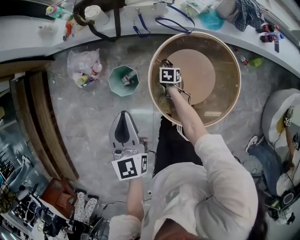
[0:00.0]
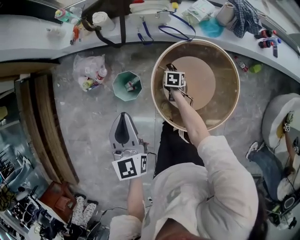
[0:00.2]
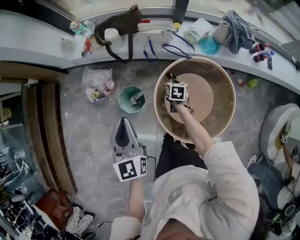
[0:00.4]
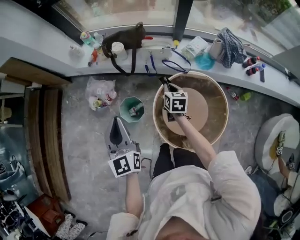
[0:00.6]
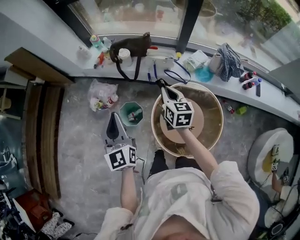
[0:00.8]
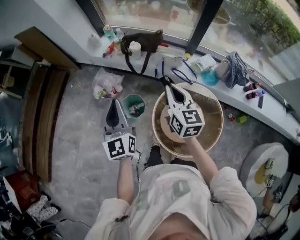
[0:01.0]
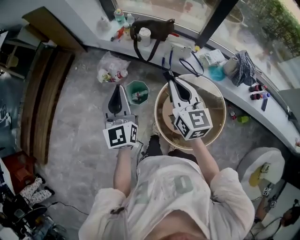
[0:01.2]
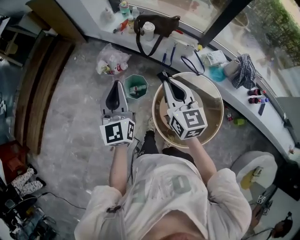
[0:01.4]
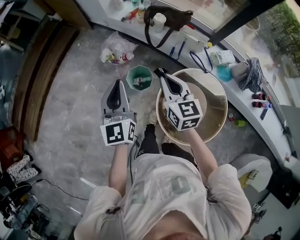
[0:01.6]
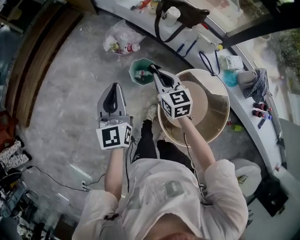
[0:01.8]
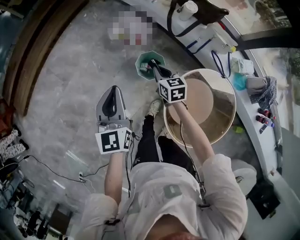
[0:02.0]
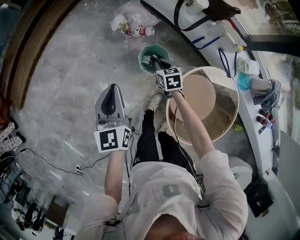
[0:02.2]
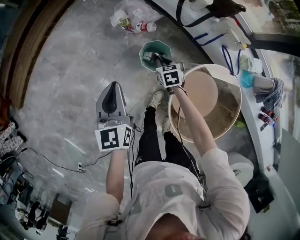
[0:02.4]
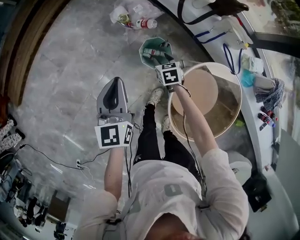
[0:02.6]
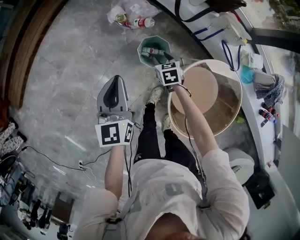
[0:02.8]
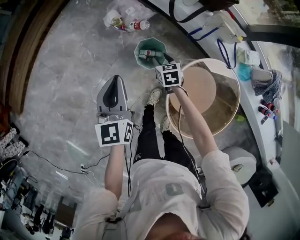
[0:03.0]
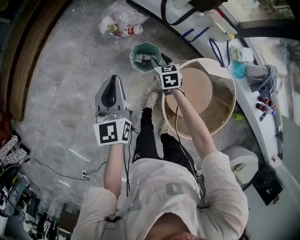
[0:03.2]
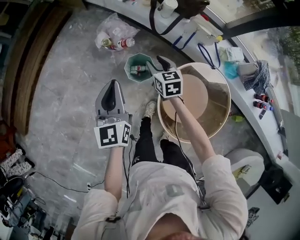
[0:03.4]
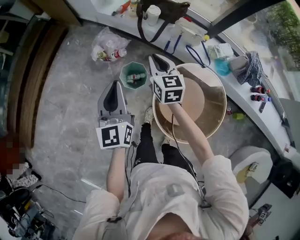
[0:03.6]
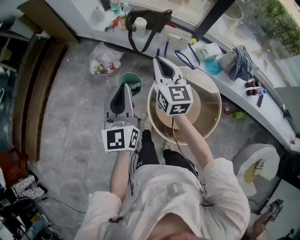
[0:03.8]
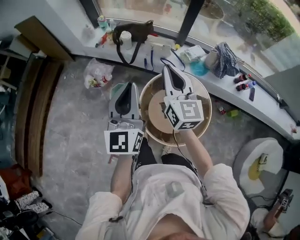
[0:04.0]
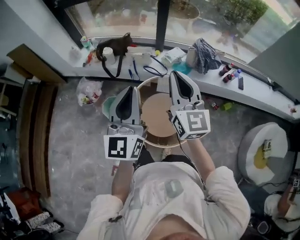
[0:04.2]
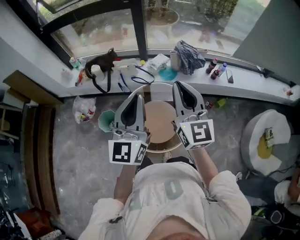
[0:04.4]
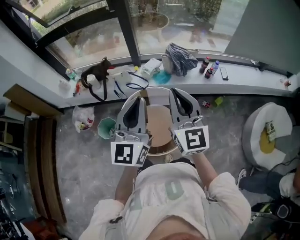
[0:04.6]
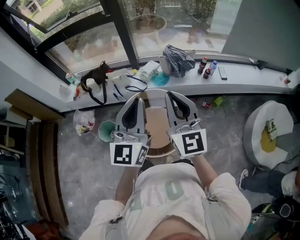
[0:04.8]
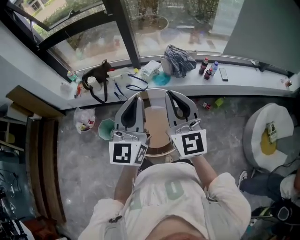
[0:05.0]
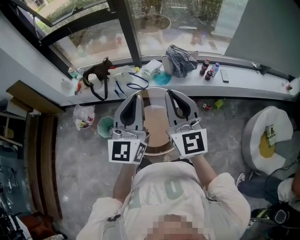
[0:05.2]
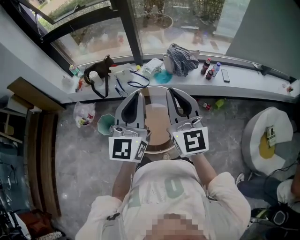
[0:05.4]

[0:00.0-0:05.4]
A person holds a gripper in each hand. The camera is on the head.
0:00.0 to 0:01.4: The right gripper moves upward, about 50 cm, and tips its fingers upward by roughly 60 degrees, while the left gripper goes some 15 cm upward, and rotates about 30 degrees.
0:01.4 to 0:02.8: The right gripper is displaced downward by some 40 cm, tilts its fingers approximately 50 degrees downward, and opens its fingers, while the left gripper travels downward and to the left by about 25 cm, and changes its angle by some 20 degrees.
0:02.8 to 0:04.0: The left gripper moves some 40 cm, and swivels roughly 40 degrees; the right gripper travels upward by some 50 cm, angles its fingers upward, by roughly 60 degrees, and closes its fingers.
0:04.0 to 0:05.4: The left gripper goes some 30 cm to the right, and swivels about 20 degrees. The right gripper shifts about 35 cm to the right, backward and upward, and swivels some 20 degrees.

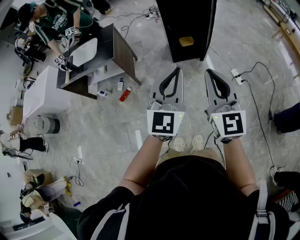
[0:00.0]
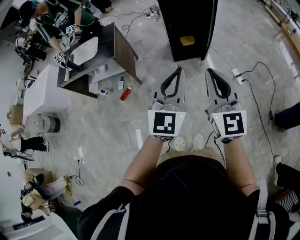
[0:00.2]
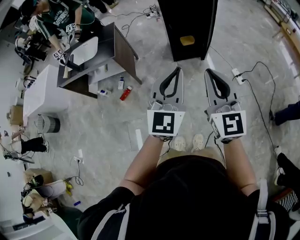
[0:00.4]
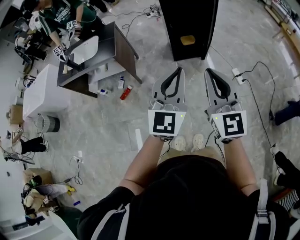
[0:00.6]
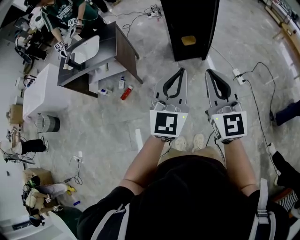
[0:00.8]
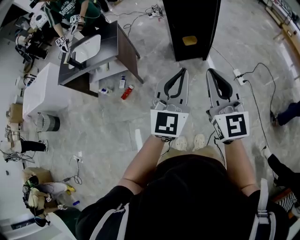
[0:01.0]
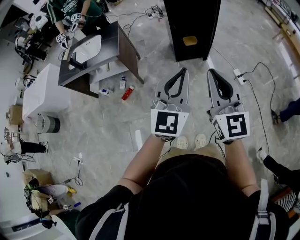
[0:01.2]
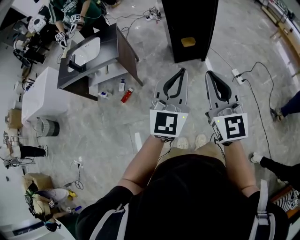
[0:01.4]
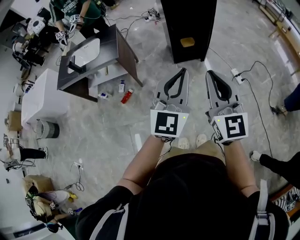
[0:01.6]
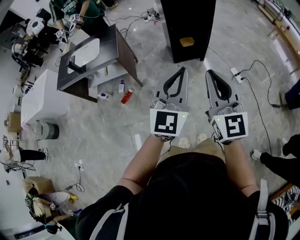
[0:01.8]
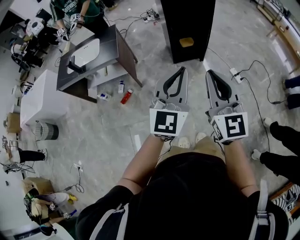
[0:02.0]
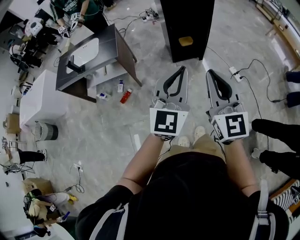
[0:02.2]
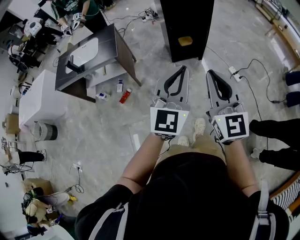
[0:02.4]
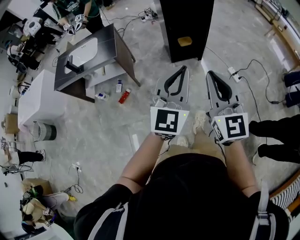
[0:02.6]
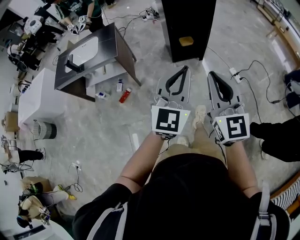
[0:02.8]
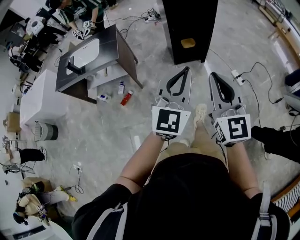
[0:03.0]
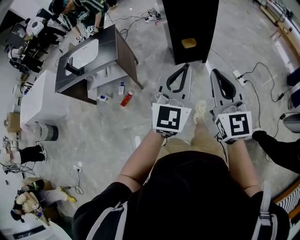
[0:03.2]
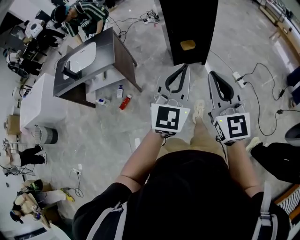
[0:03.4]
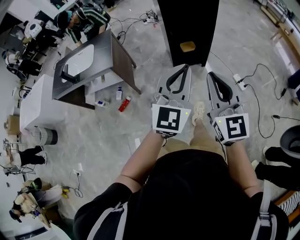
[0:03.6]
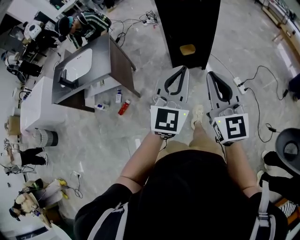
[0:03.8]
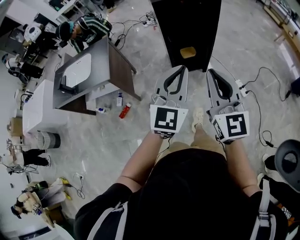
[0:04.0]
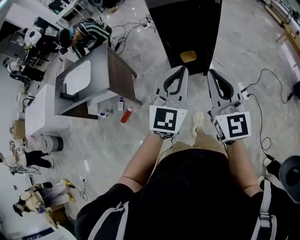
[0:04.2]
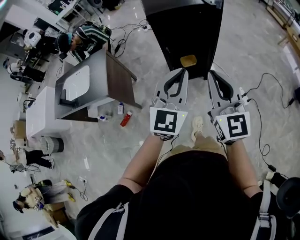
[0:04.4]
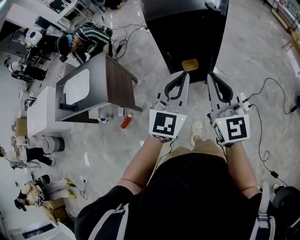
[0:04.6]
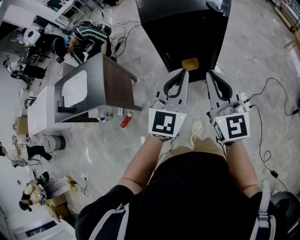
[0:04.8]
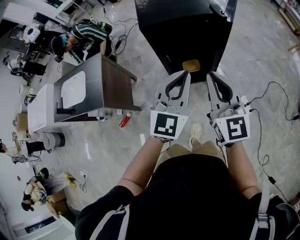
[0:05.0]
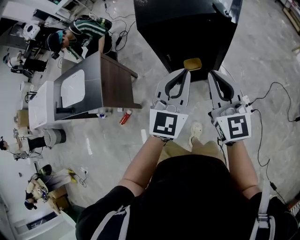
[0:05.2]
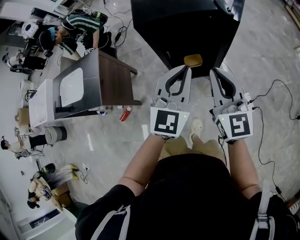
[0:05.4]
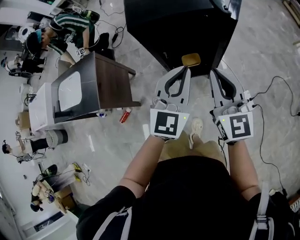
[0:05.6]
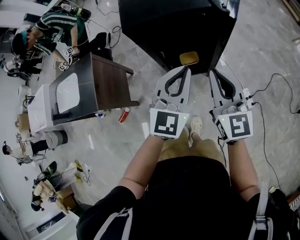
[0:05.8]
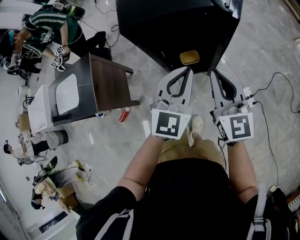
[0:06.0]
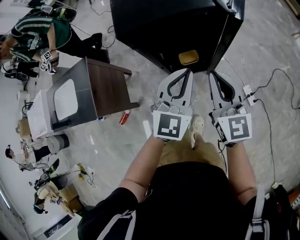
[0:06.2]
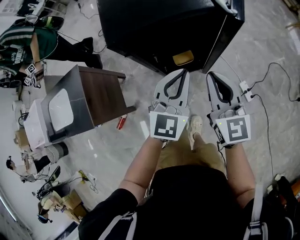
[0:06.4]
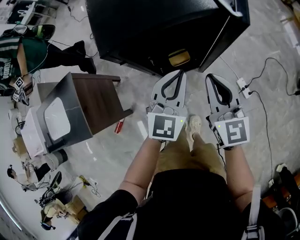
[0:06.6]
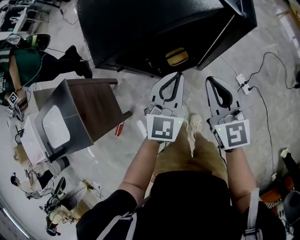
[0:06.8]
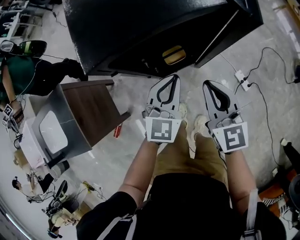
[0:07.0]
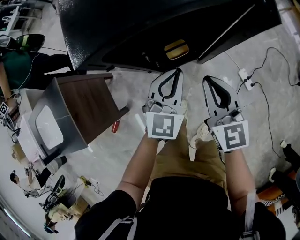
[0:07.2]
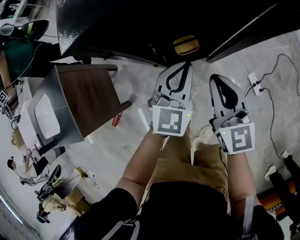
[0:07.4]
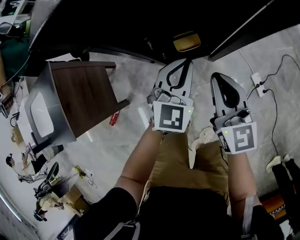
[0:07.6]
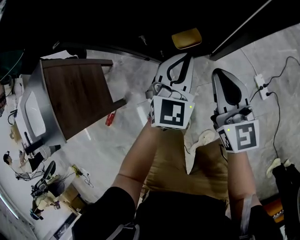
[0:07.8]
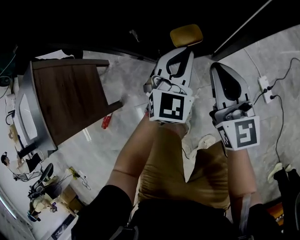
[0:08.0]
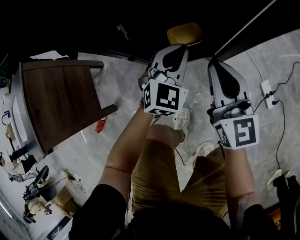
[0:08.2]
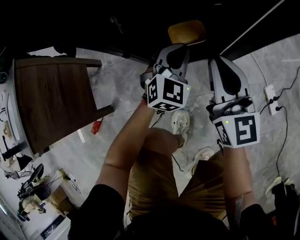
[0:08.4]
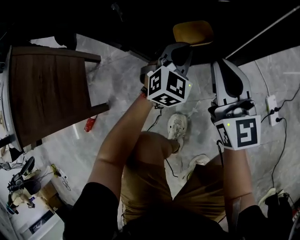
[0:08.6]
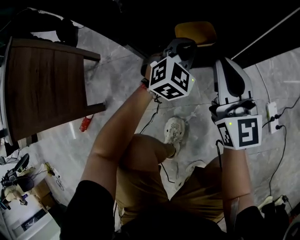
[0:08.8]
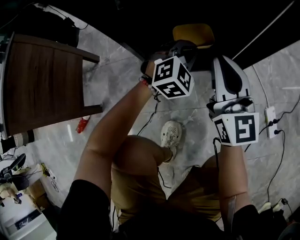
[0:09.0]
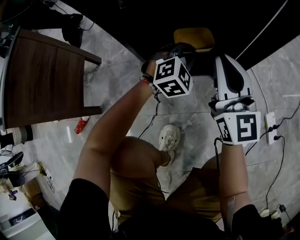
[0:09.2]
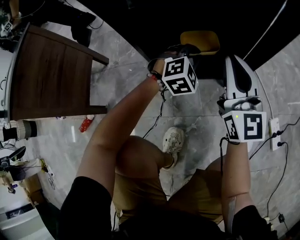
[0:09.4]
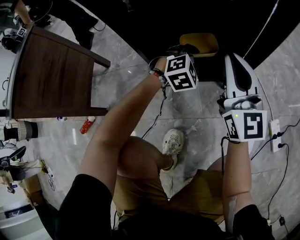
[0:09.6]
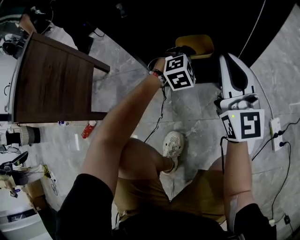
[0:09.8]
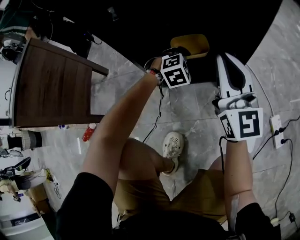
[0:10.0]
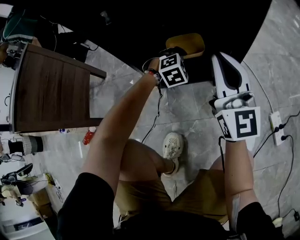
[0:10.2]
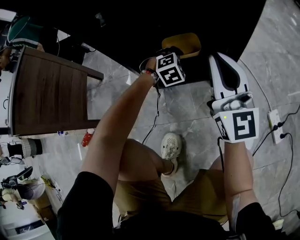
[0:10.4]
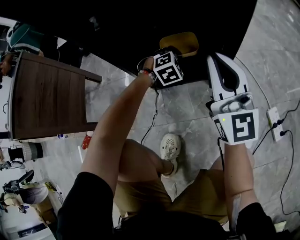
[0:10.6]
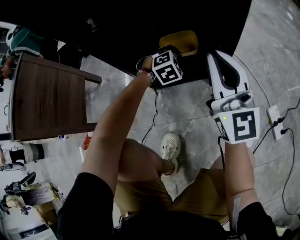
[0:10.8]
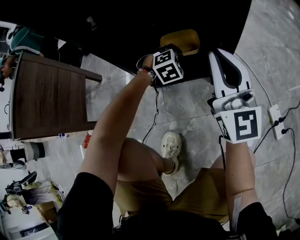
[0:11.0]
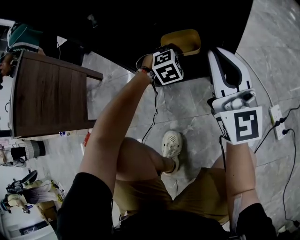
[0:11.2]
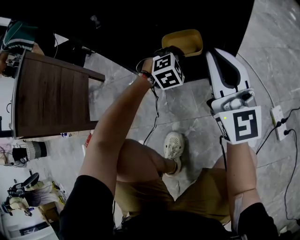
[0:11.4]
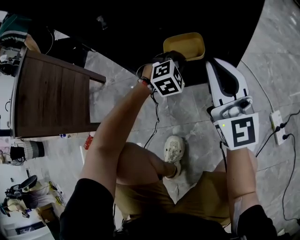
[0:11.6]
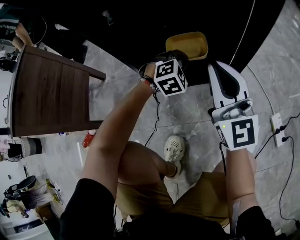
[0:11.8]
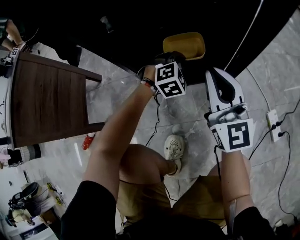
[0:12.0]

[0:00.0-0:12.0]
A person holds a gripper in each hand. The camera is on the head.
0:00.0 to 0:01.6: Both grippers move to the left, roughly 5 cm.
0:01.6 to 0:03.0: There are only small adjustments of the grippers.
0:03.0 to 0:04.4: The two grippers go approximately 35 cm forward.
0:04.4 to 0:06.0: The grippers both shift forward by roughly 30 cm.
0:06.0 to 0:07.6: The two grippers go about 30 cm downward.
0:07.6 to 0:09.0: Both grippers travel together downward, some 40 cm. The left gripper turns by some 30 degrees.
0:09.0 to 0:10.4: The left gripper shifts approximately 10 cm downward. Meanwhile the right gripper shifts approximately 5 cm to the right.
0:10.4 to 0:12.0: The grippers move only a little.

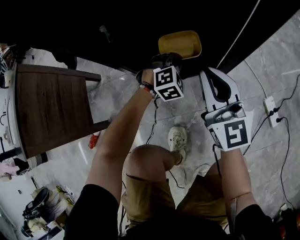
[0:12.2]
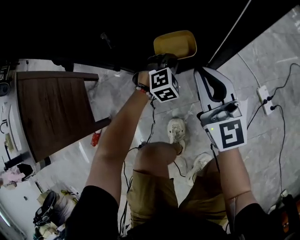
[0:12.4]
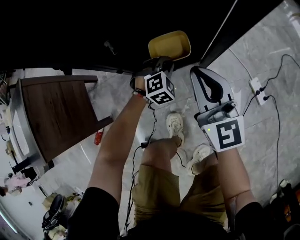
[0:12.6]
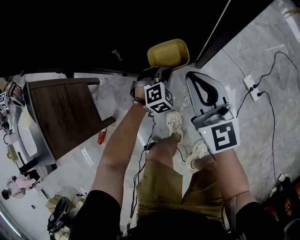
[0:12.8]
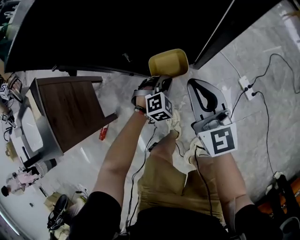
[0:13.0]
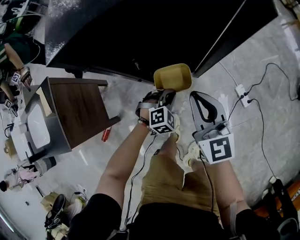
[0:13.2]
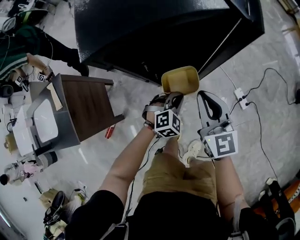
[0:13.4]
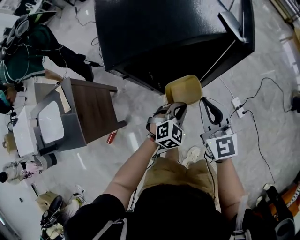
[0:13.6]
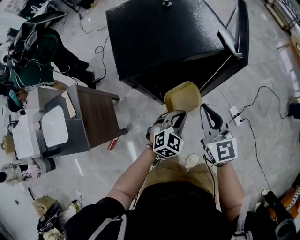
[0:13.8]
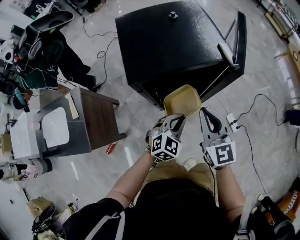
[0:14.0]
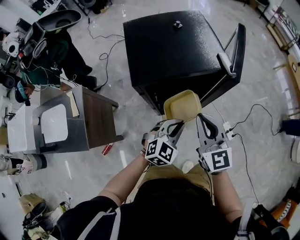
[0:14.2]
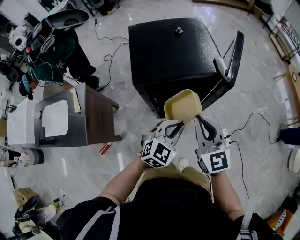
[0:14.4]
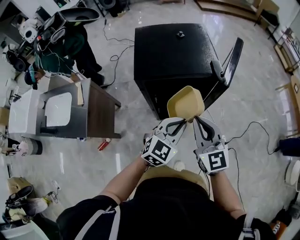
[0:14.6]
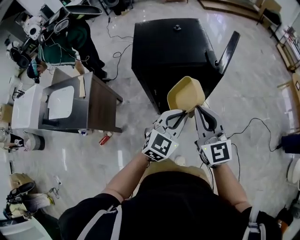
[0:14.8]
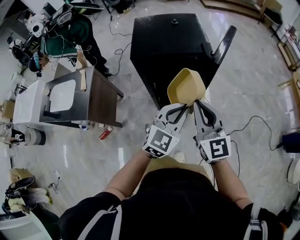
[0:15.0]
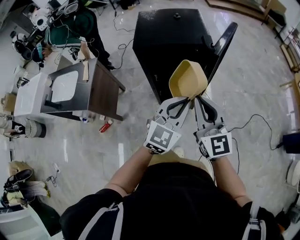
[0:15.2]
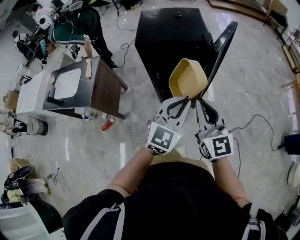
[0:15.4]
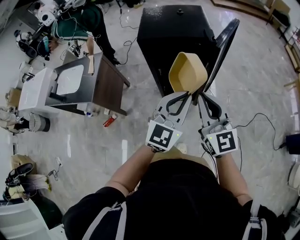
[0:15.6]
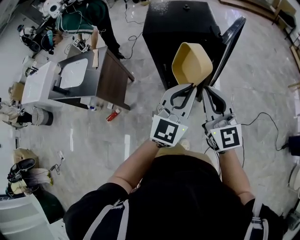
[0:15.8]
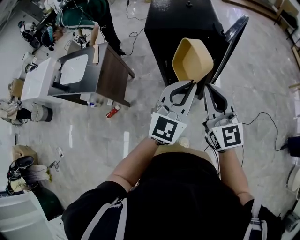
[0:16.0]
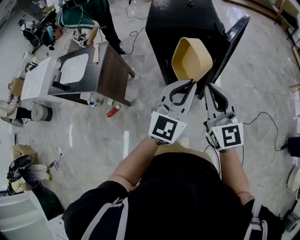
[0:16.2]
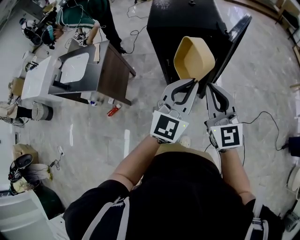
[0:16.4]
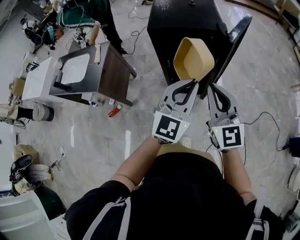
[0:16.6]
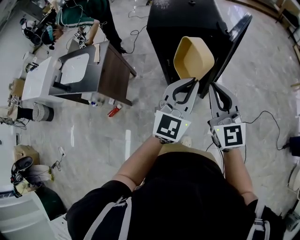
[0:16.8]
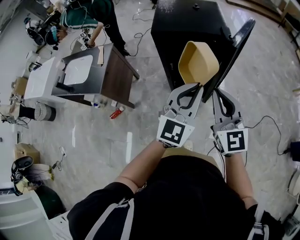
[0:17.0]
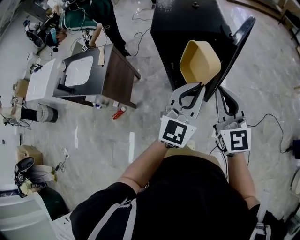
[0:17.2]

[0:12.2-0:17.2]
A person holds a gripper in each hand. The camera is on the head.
0:12.2 to 0:13.8: Both grippers travel together upward, about 50 cm. The left gripper swivels about 30 degrees.
0:13.8 to 0:15.6: The right gripper is displaced backward, upward and to the right by roughly 30 cm, and swivels some 20 degrees; the left gripper moves upward, backward and to the right, roughly 35 cm, and tips its fingers upward by some 30 degrees.
0:15.6 to 0:17.2: The grippers move only a little.

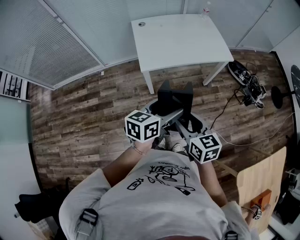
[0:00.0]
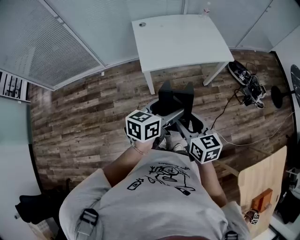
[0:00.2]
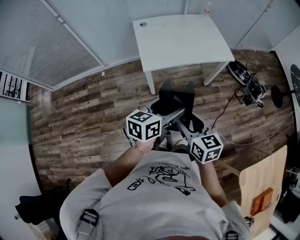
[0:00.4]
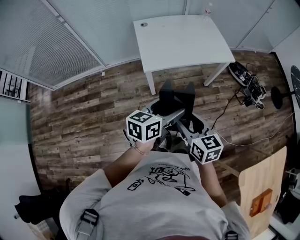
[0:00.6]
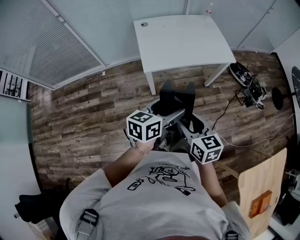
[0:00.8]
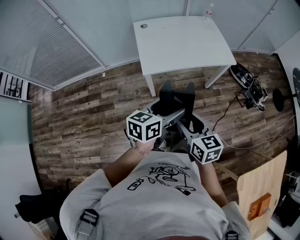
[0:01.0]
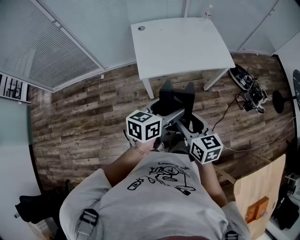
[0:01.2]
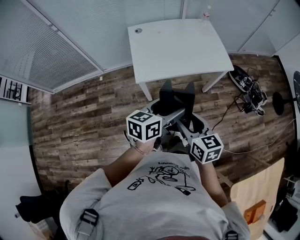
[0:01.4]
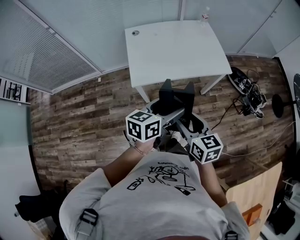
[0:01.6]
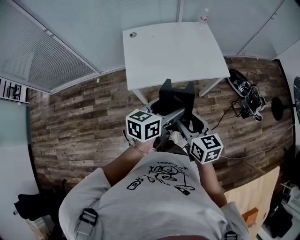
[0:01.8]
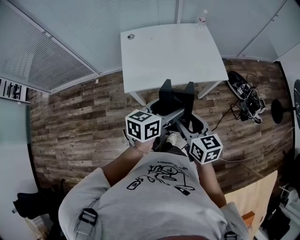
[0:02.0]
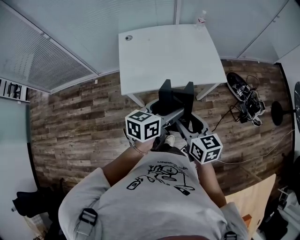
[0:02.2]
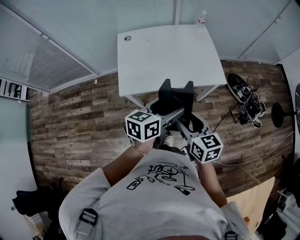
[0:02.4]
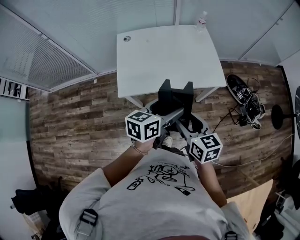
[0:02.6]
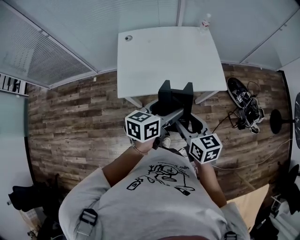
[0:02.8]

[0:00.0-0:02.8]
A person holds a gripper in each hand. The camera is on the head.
0:00.0 to 0:01.4: The grippers both shift forward by about 10 cm.
0:01.4 to 0:02.8: The two grippers go roughly 20 cm forward and to the right.
